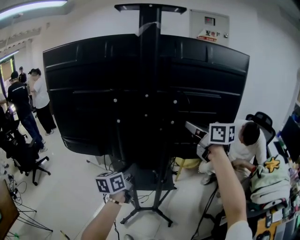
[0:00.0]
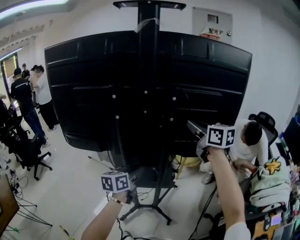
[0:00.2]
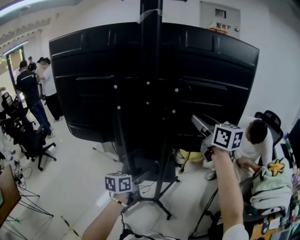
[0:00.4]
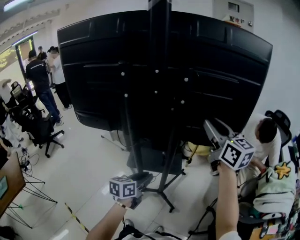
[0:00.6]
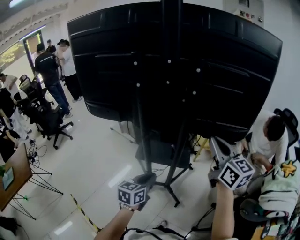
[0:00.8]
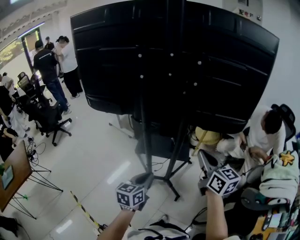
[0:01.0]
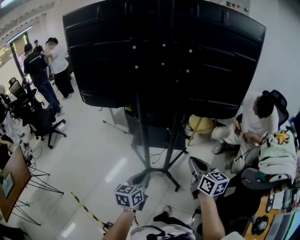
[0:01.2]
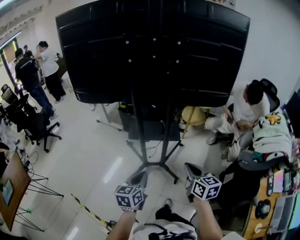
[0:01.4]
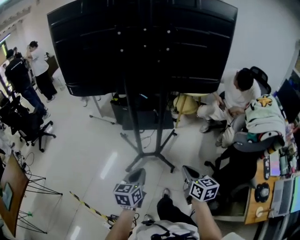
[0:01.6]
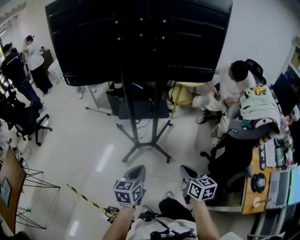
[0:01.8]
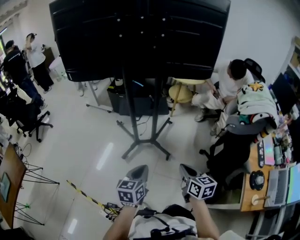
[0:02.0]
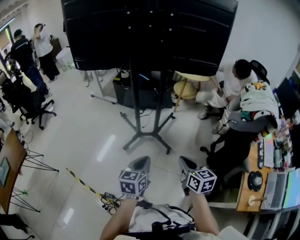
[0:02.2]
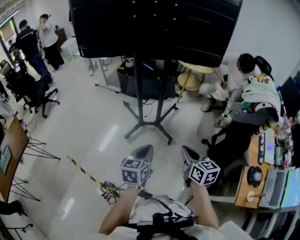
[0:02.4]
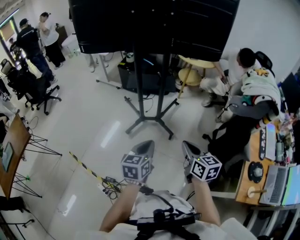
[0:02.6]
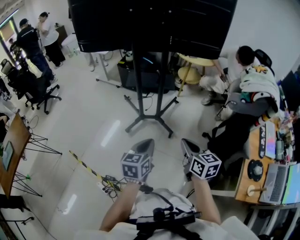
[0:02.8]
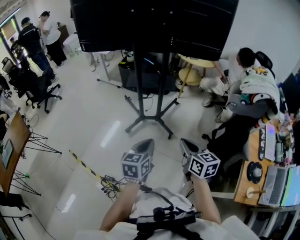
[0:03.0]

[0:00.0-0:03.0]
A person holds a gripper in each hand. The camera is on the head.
0:00.0 to 0:01.6: The two grippers go about 50 cm backward and downward. The left gripper opens, then closes again; the right gripper rotates roughly 20 degrees, and opens, then closes once more.
0:01.6 to 0:03.0: The left gripper is displaced backward and to the right by about 20 cm. The right gripper moves backward, approximately 15 cm.

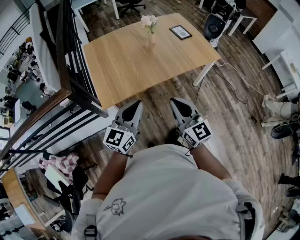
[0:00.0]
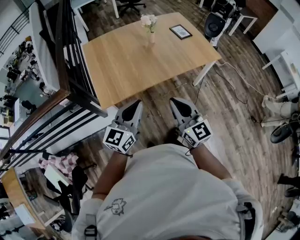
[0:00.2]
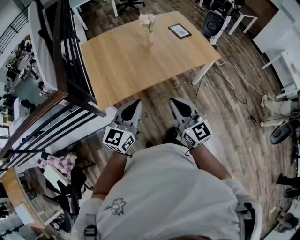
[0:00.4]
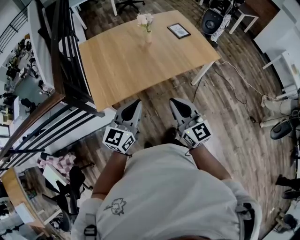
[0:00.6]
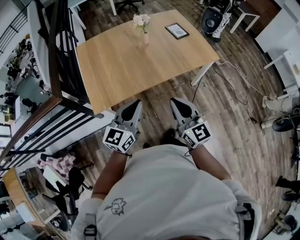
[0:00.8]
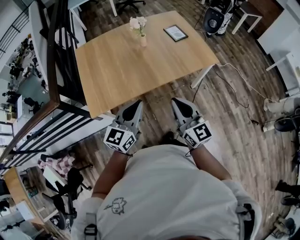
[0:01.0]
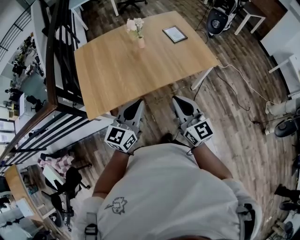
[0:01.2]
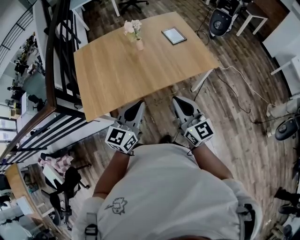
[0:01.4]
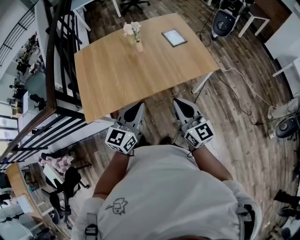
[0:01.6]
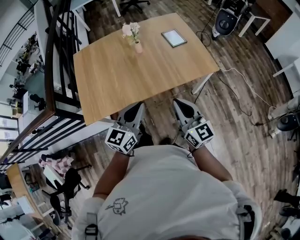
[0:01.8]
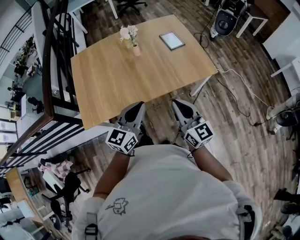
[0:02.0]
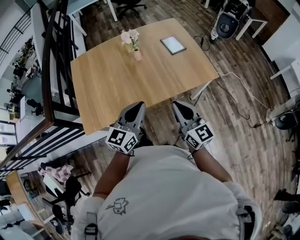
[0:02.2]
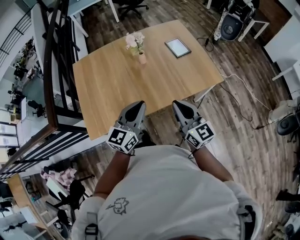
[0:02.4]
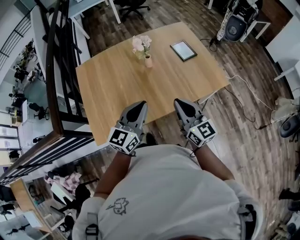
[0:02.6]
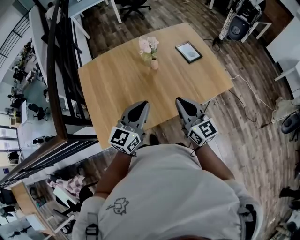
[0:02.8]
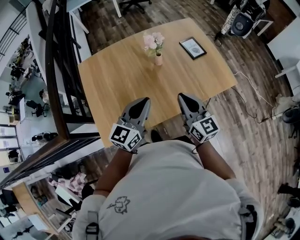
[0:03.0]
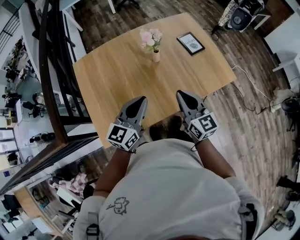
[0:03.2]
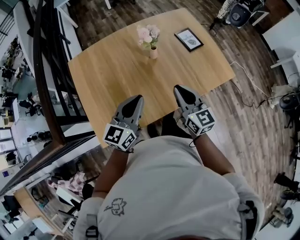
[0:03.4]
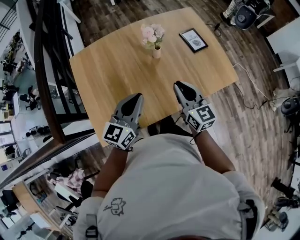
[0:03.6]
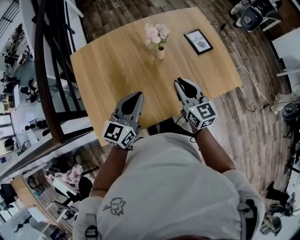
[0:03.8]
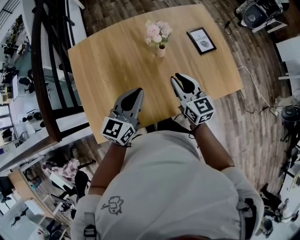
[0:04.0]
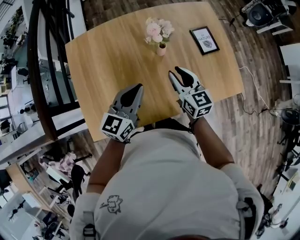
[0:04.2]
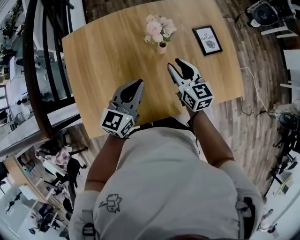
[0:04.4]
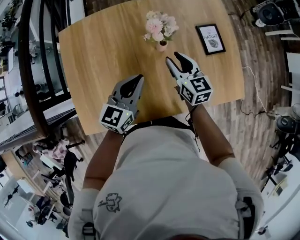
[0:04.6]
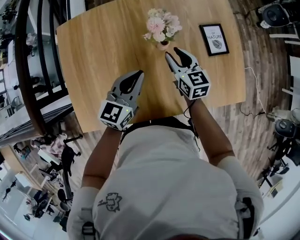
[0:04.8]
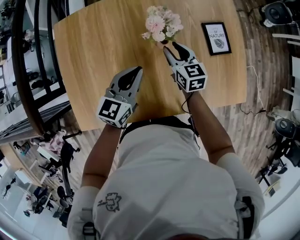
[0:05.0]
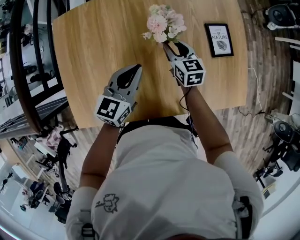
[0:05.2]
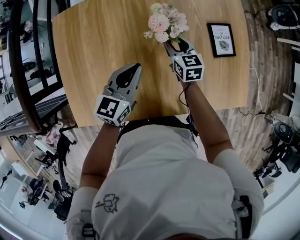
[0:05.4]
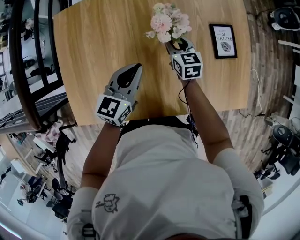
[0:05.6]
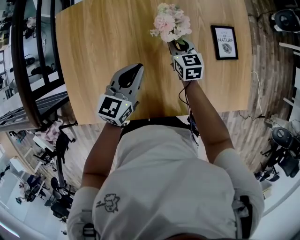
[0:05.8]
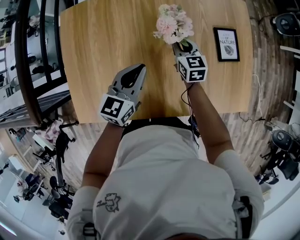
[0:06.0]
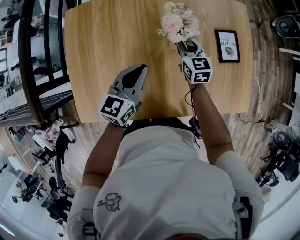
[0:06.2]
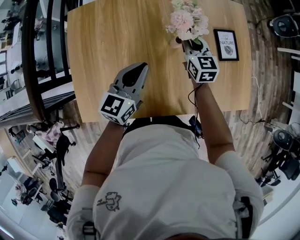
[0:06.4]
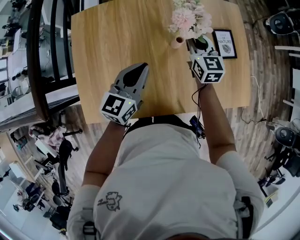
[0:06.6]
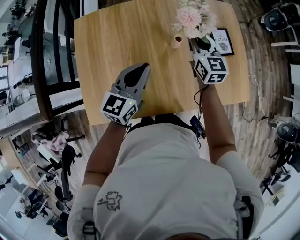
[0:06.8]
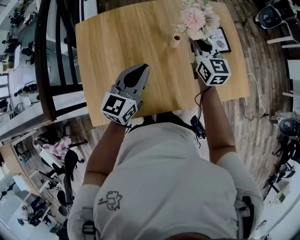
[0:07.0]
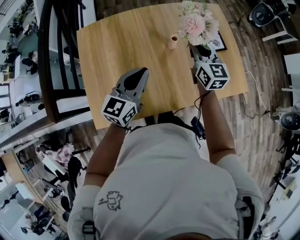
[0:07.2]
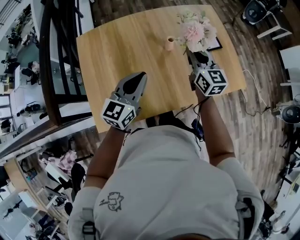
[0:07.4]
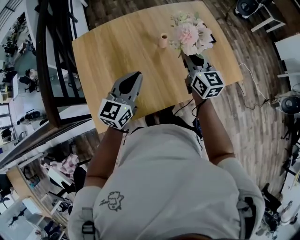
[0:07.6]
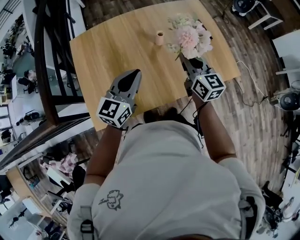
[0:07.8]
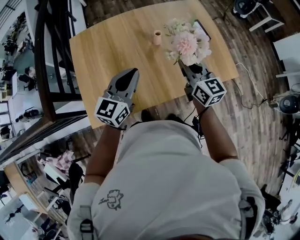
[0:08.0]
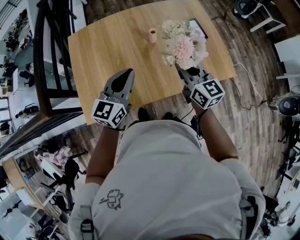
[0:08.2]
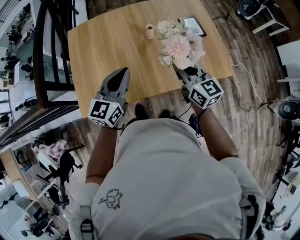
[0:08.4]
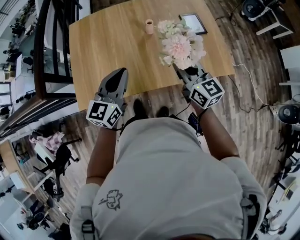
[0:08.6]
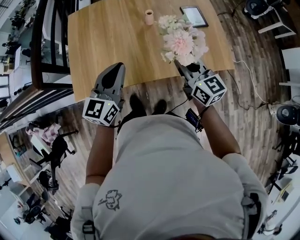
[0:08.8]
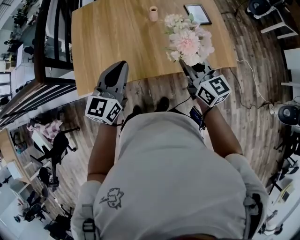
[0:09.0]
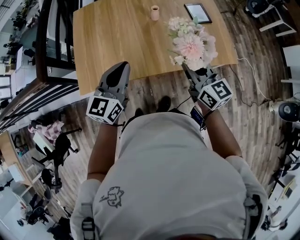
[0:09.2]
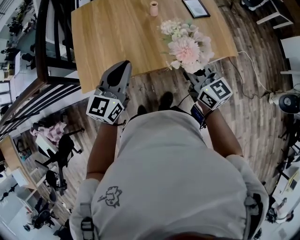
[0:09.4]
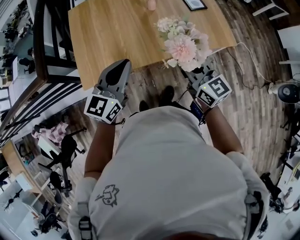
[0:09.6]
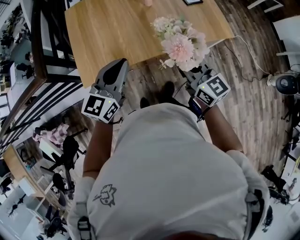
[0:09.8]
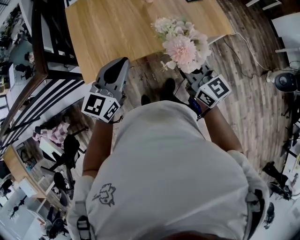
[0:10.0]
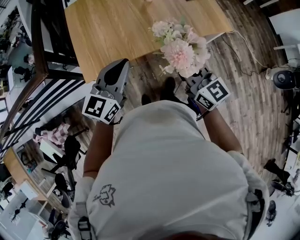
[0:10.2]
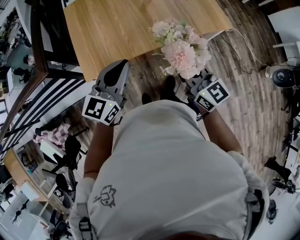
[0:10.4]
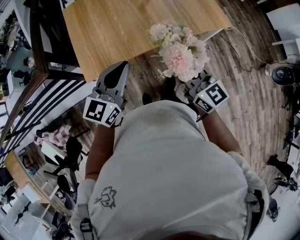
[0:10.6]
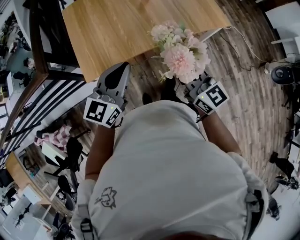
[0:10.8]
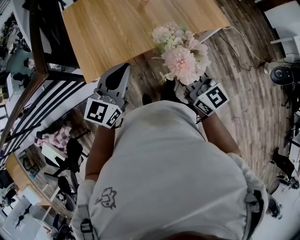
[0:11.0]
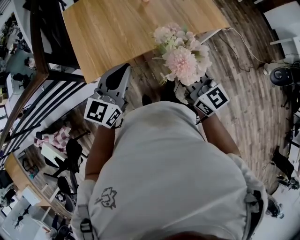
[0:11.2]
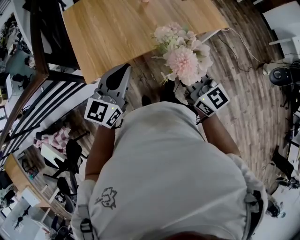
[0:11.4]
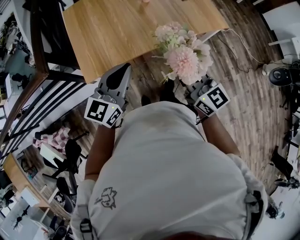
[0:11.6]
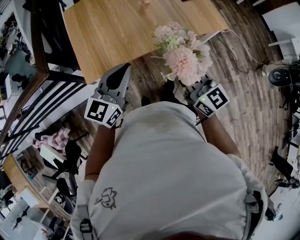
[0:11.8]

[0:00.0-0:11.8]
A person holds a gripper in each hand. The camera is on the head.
0:00.0 to 0:01.4: Both grippers travel together to the right and forward, roughly 20 cm.
0:01.4 to 0:03.0: The two grippers go roughly 25 cm forward and to the left.
0:03.0 to 0:04.4: Both grippers move forward and downward, some 20 cm. The right gripper opens up.
0:04.4 to 0:06.0: The left gripper moves downward and forward, approximately 10 cm. The right gripper goes about 20 cm downward and forward, and closes its fingers.
0:06.0 to 0:07.4: The right gripper moves upward and backward, about 25 cm, and changes its angle by some 30 degrees; the left gripper shifts approximately 15 cm backward and upward.
0:07.4 to 0:08.8: Both grippers travel together backward and to the right, approximately 15 cm. The right gripper rotates approximately 20 degrees.
0:08.8 to 0:10.4: The two grippers go roughly 20 cm backward and to the left.
0:10.4 to 0:11.8: The grippers move only a little.

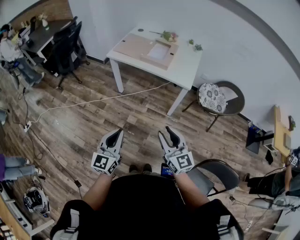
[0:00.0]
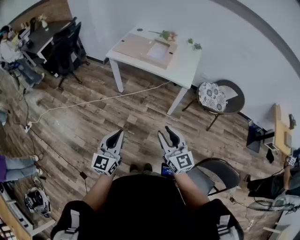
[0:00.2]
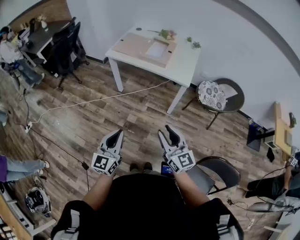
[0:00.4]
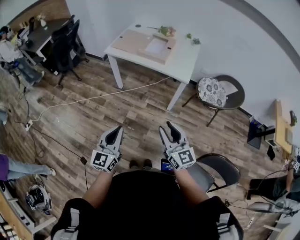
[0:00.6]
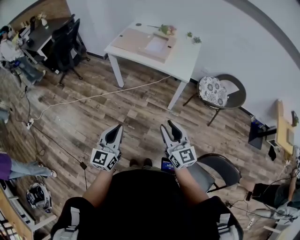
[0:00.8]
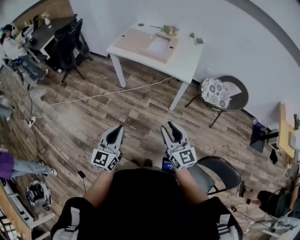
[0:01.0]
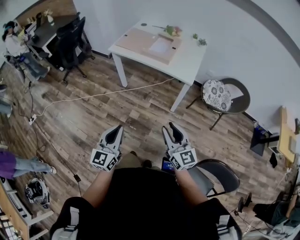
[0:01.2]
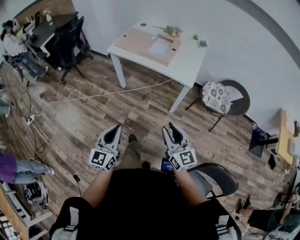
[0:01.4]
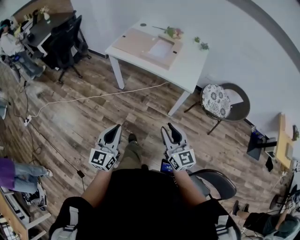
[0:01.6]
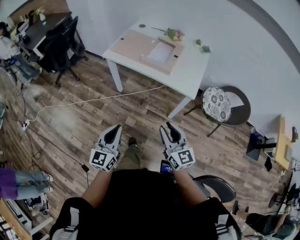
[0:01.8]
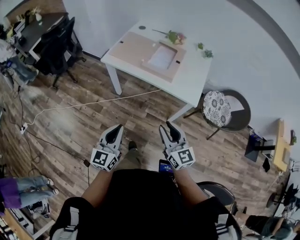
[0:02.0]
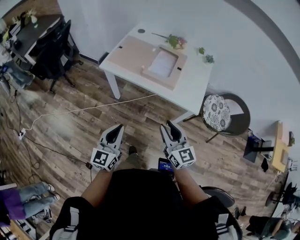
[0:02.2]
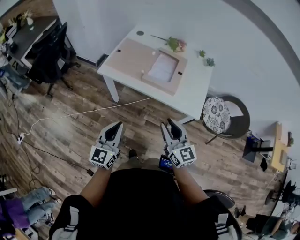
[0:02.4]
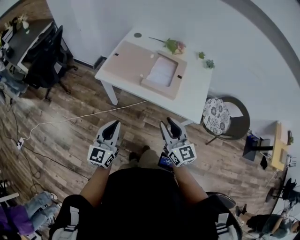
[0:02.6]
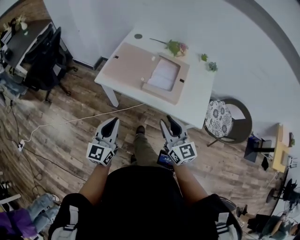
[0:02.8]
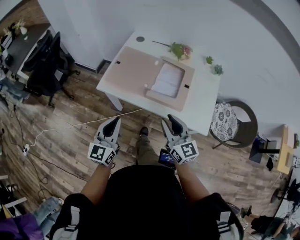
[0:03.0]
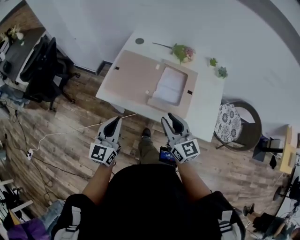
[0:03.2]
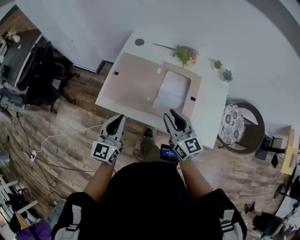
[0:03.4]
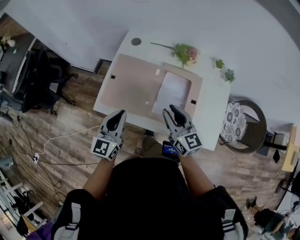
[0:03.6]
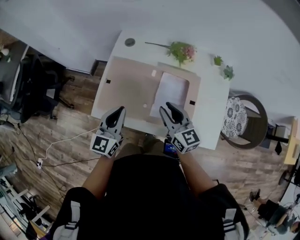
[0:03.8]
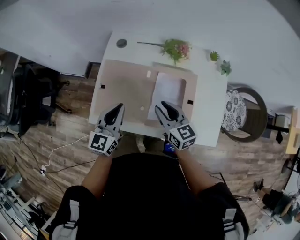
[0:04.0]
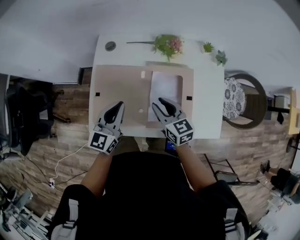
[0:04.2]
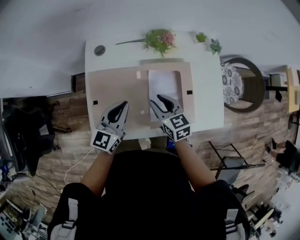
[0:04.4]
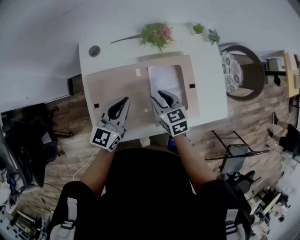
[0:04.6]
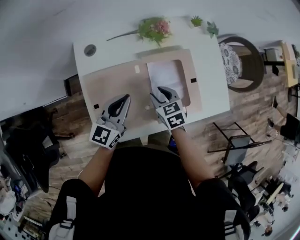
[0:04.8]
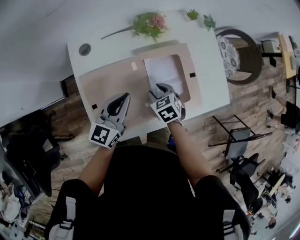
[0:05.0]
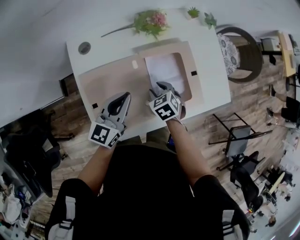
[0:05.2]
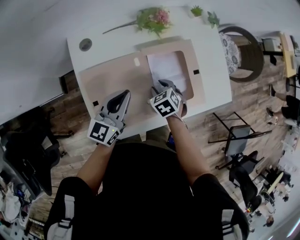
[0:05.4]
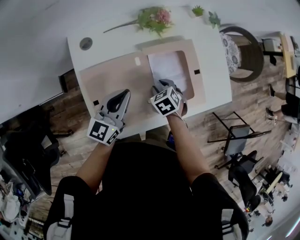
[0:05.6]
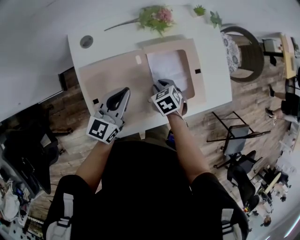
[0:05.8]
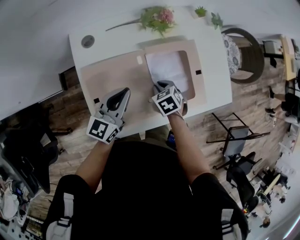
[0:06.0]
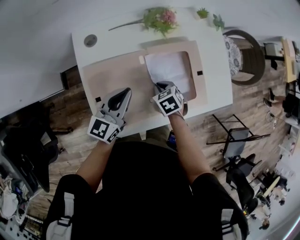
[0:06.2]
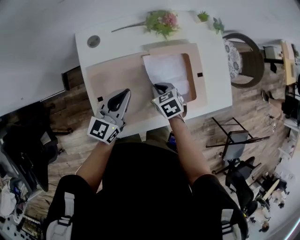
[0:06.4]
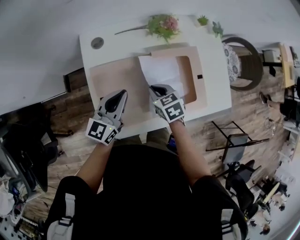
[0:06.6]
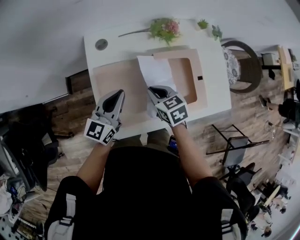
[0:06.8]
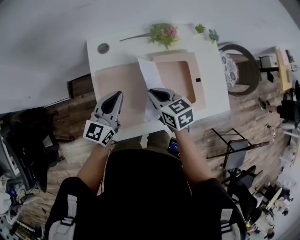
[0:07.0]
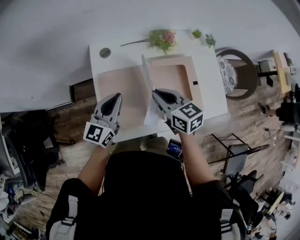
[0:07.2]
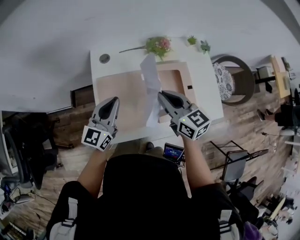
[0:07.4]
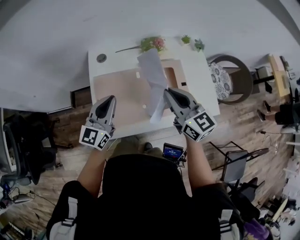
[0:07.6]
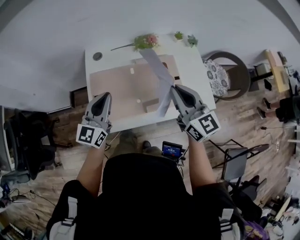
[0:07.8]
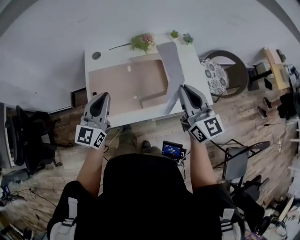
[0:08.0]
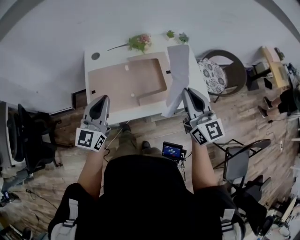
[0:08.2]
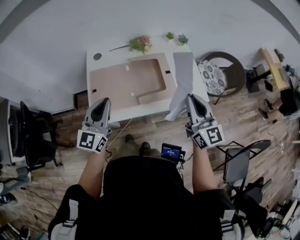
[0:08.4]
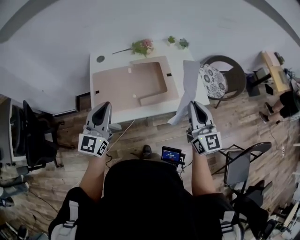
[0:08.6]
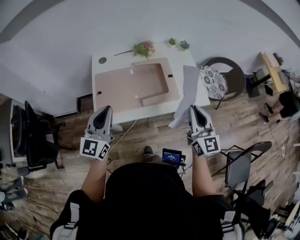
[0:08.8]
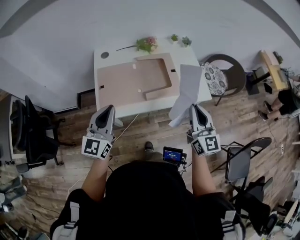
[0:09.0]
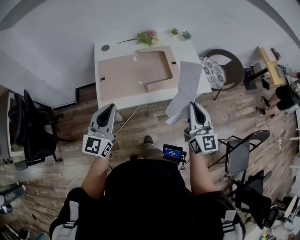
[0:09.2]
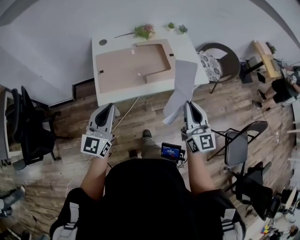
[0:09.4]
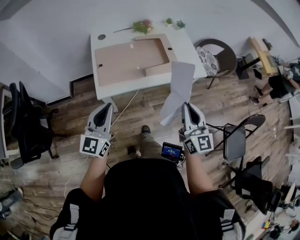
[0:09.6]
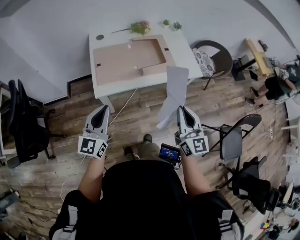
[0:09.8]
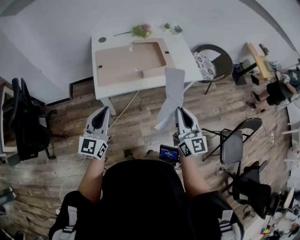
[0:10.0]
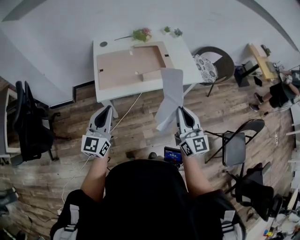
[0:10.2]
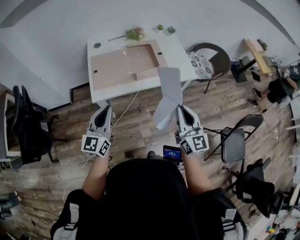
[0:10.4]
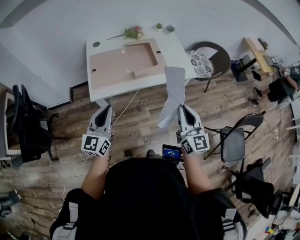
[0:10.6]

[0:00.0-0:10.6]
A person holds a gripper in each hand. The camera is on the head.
0:00.0 to 0:01.6: The left gripper goes about 5 cm forward; the right gripper shifts approximately 10 cm forward and to the right.
0:01.6 to 0:03.0: The pair of grippers is taken forward, roughly 40 cm.
0:03.0 to 0:04.6: The left gripper ends up about 40 cm from where it was, and changes its angle by some 40 degrees. Meanwhile the right gripper shifts by roughly 35 cm, and tilts its fingers some 40 degrees downward.
0:04.6 to 0:06.0: The right gripper travels downward by approximately 10 cm, and rotates roughly 30 degrees.
0:06.0 to 0:07.6: The left gripper shifts approximately 15 cm upward and backward, and swivels about 20 degrees. The right gripper travels upward by some 30 cm, and angles its fingers upward, by some 60 degrees.
0:07.6 to 0:09.0: The left gripper is displaced backward by about 20 cm. The right gripper heads backward and to the right, covering about 25 cm, and turns by some 30 degrees.
0:09.0 to 0:10.6: Both grippers travel together backward, about 15 cm.
